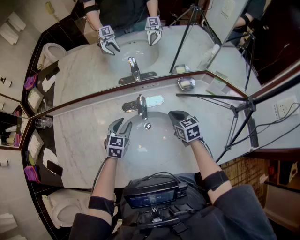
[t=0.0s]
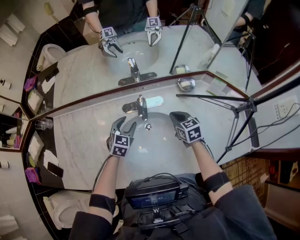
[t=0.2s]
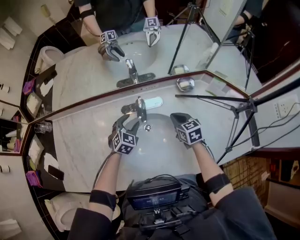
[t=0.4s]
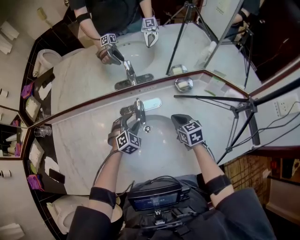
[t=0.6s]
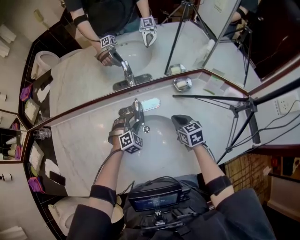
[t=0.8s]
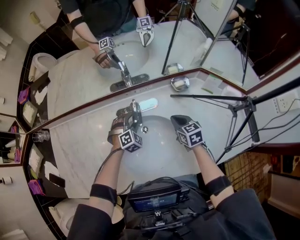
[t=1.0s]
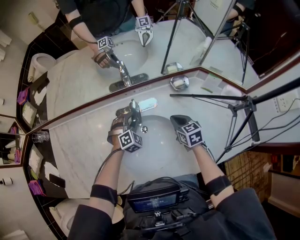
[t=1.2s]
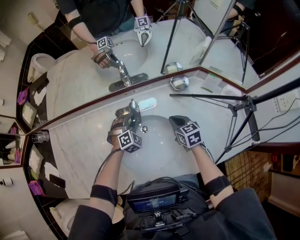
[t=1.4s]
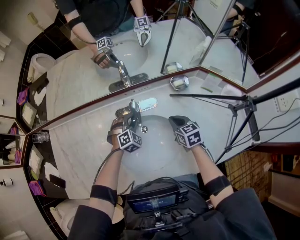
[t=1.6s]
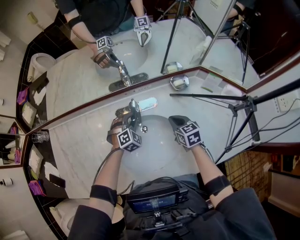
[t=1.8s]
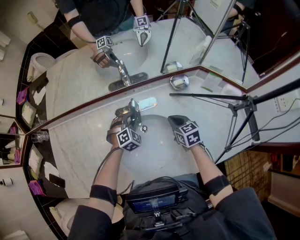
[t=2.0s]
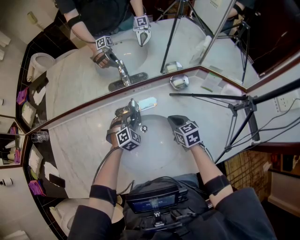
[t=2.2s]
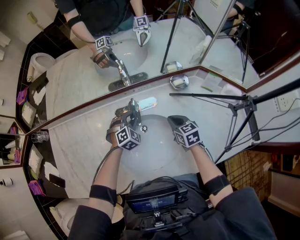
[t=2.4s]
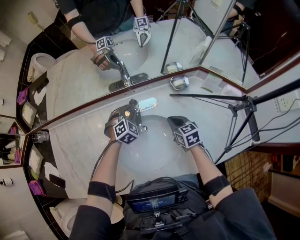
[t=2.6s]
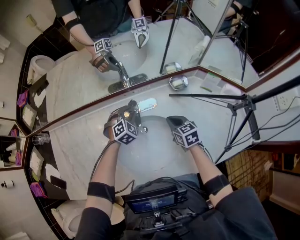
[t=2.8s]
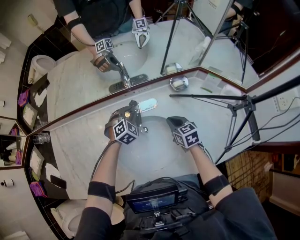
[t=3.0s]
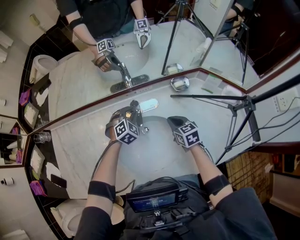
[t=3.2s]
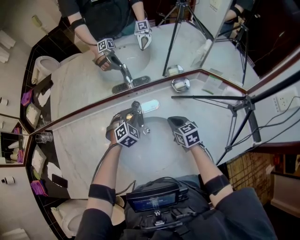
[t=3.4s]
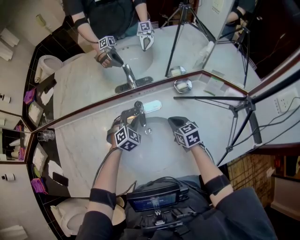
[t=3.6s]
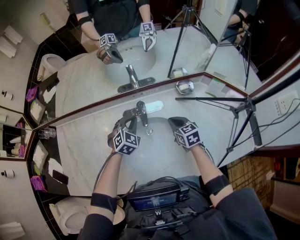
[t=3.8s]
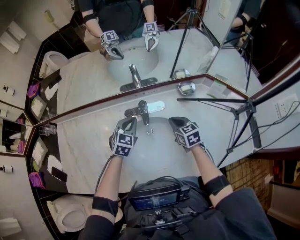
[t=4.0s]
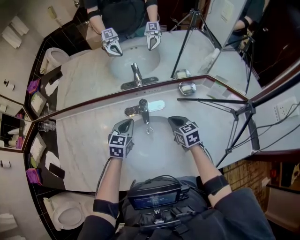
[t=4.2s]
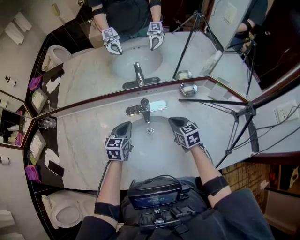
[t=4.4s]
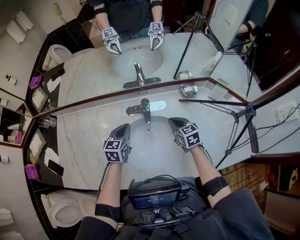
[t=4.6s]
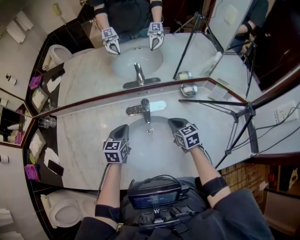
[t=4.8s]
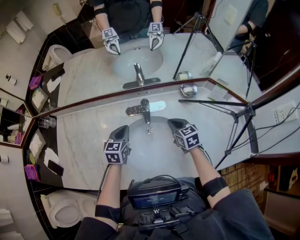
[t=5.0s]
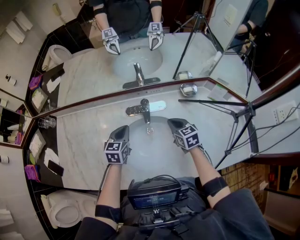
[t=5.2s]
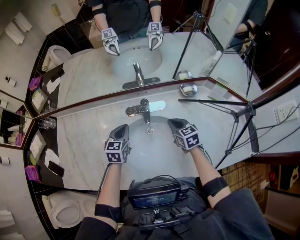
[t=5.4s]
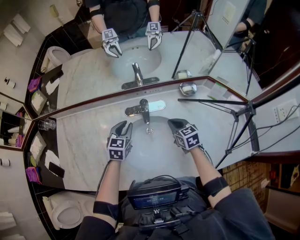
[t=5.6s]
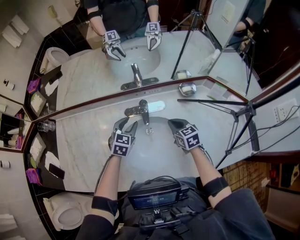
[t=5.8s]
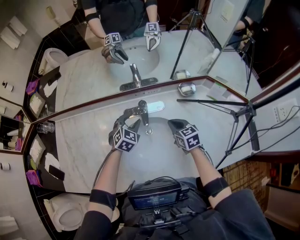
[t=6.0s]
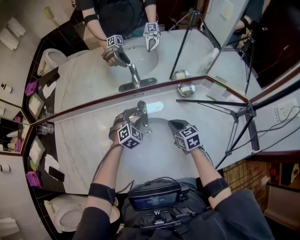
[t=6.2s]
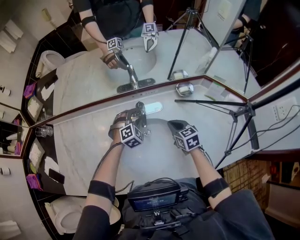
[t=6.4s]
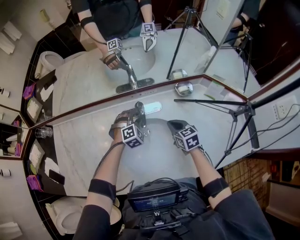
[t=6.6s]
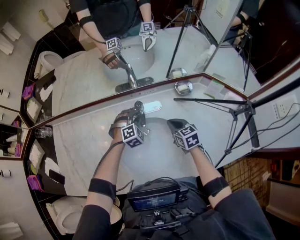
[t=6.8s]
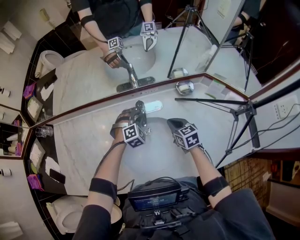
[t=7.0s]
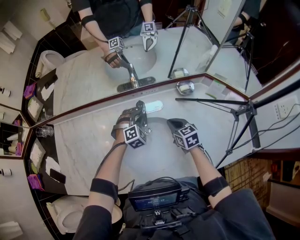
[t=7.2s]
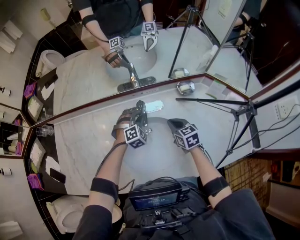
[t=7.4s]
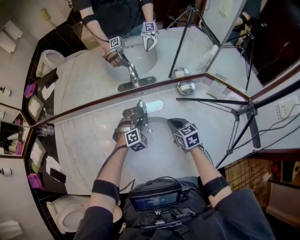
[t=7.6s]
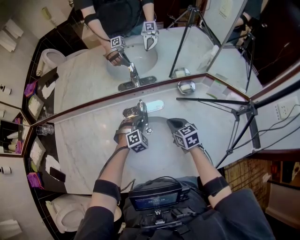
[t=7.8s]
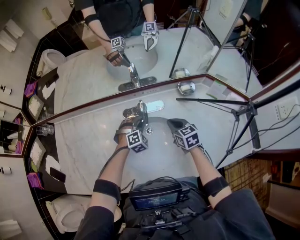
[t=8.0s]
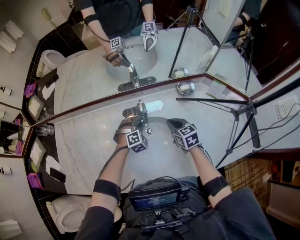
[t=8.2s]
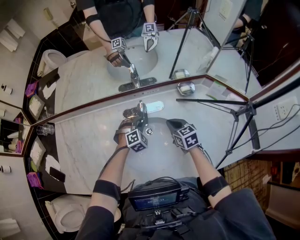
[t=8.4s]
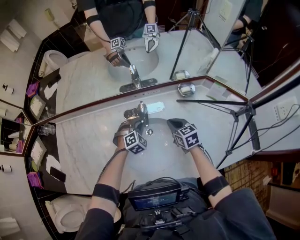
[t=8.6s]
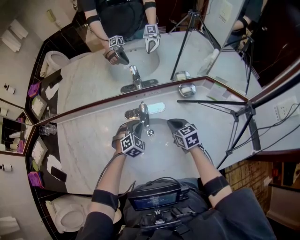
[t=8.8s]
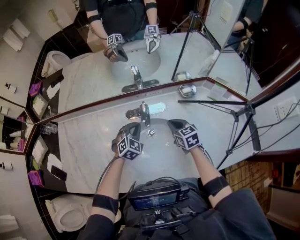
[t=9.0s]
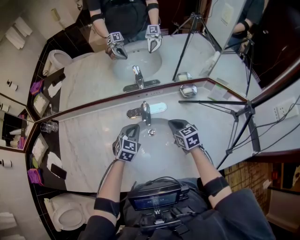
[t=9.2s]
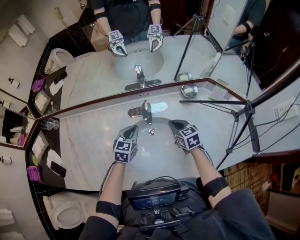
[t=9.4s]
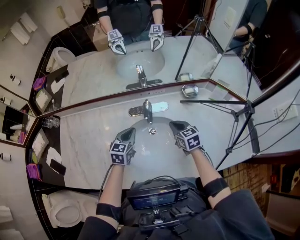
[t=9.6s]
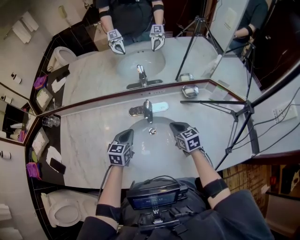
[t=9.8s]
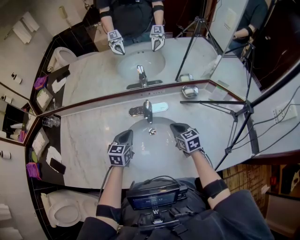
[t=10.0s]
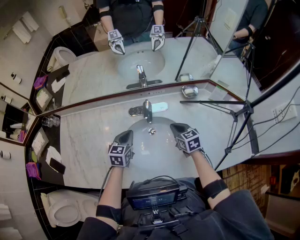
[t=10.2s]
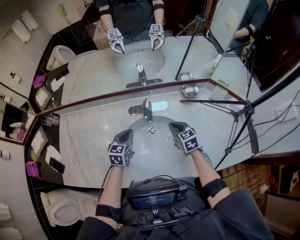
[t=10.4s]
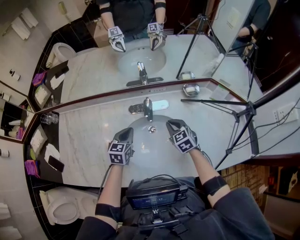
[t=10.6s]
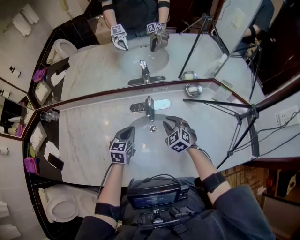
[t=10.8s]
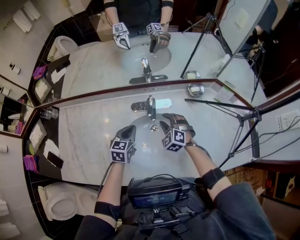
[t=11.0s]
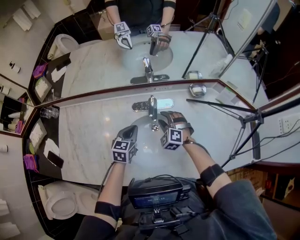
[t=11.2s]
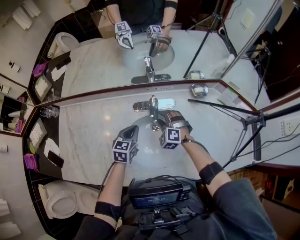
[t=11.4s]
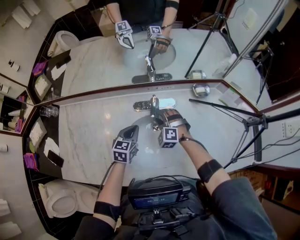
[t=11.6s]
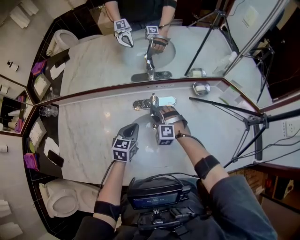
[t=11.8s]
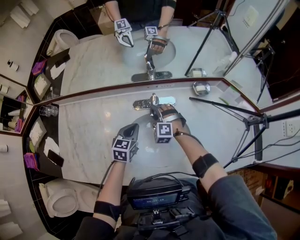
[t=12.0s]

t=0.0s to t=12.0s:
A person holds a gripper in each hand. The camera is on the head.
t=0.0s to t=1.6s: The left gripper travels to the right, downward and forward by about 10 cm, and rotates around the line of its fingers by approximately 40 degrees, clockwise from behind.
t=1.6s to t=3.0s: There are only small adjustments of the grippers.
t=3.0s to t=4.4s: The left gripper travels to the left, backward and upward by some 15 cm, twists approximately 50 degrees counterclockwise, seen from behind, and closes, while the right gripper ends up roughly 5 cm from where it was.
t=4.4s to t=6.0s: The left gripper heads to the right, covering about 5 cm, turns by some 40 degrees, and opens up.
t=6.0s to t=7.6s: The left gripper goes approximately 5 cm downward, changes its angle by some 30 degrees, and closes its fingers.
t=7.6s to t=9.0s: The left gripper shifts some 5 cm upward, and turns by about 20 degrees.
t=9.0s to t=10.4s: The left gripper shifts roughly 5 cm to the left, and rolls counterclockwise, seen from behind, by approximately 40 degrees.
t=10.4s to t=12.0s: The right gripper moves to the left and forward, some 15 cm, rotates around the line of its fingers by approximately 70 degrees, counterclockwise from behind, and opens its fingers.

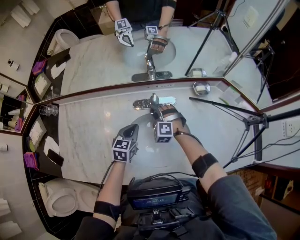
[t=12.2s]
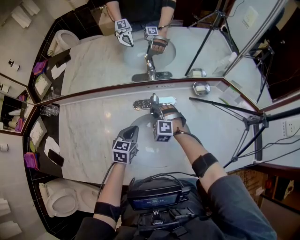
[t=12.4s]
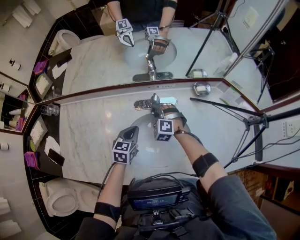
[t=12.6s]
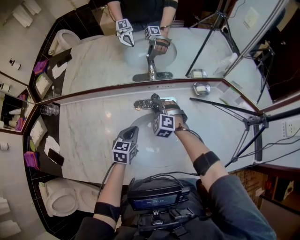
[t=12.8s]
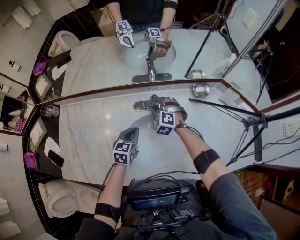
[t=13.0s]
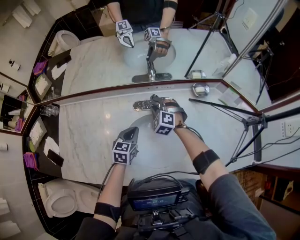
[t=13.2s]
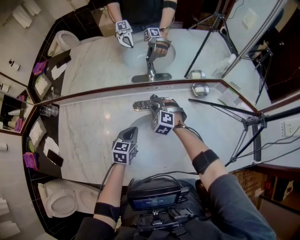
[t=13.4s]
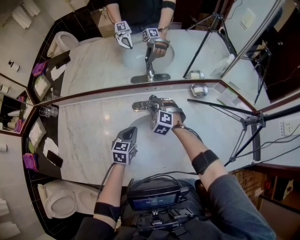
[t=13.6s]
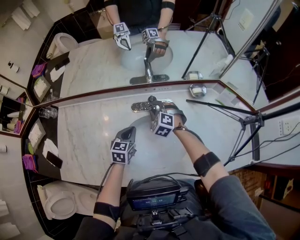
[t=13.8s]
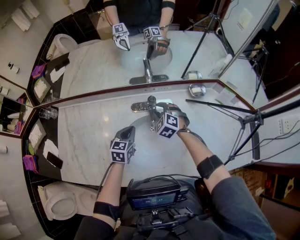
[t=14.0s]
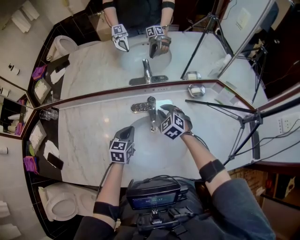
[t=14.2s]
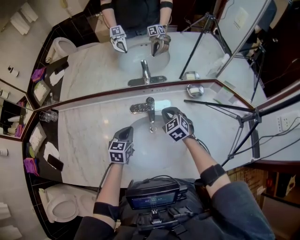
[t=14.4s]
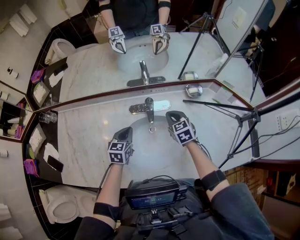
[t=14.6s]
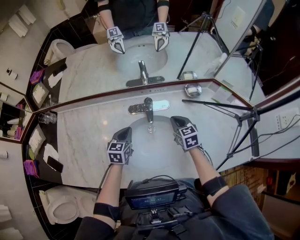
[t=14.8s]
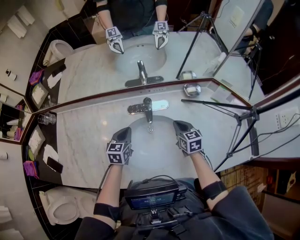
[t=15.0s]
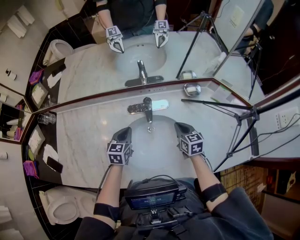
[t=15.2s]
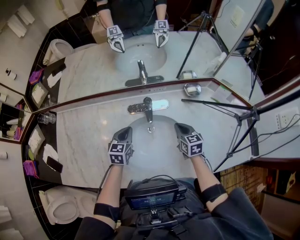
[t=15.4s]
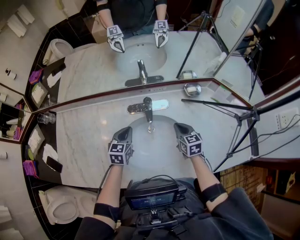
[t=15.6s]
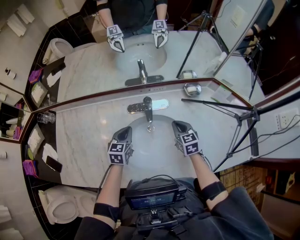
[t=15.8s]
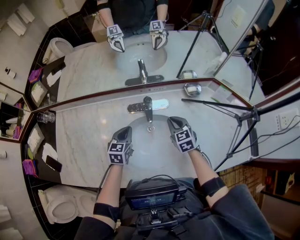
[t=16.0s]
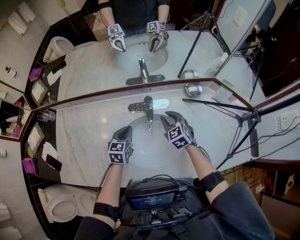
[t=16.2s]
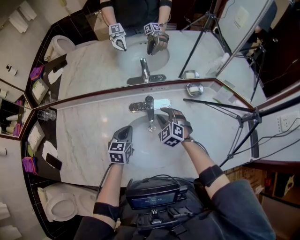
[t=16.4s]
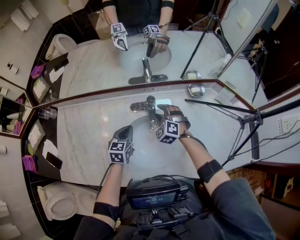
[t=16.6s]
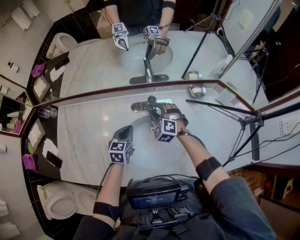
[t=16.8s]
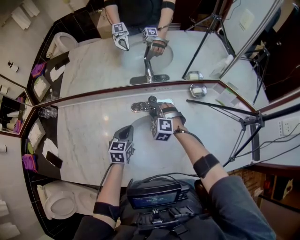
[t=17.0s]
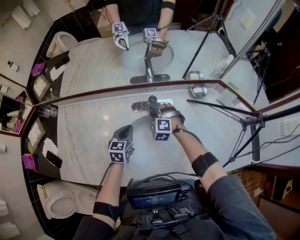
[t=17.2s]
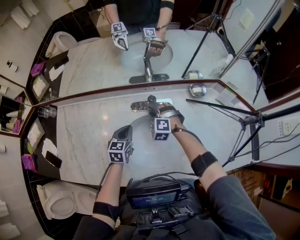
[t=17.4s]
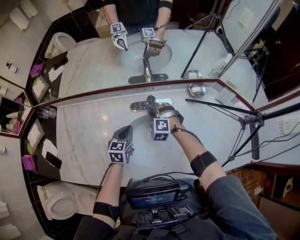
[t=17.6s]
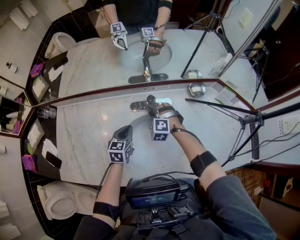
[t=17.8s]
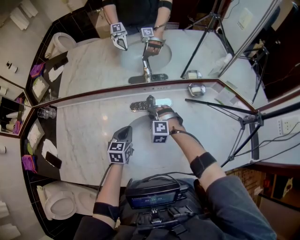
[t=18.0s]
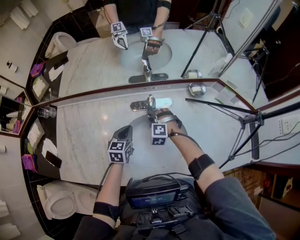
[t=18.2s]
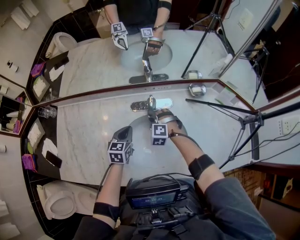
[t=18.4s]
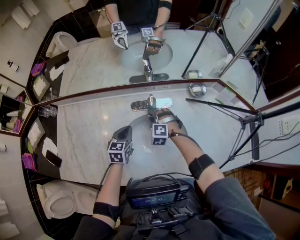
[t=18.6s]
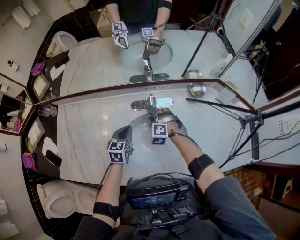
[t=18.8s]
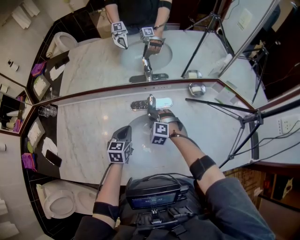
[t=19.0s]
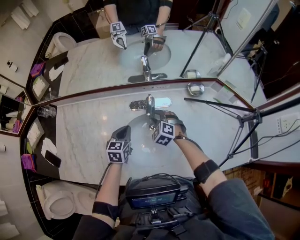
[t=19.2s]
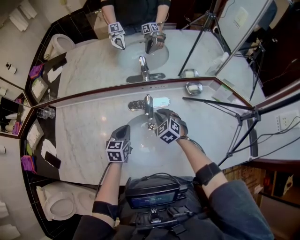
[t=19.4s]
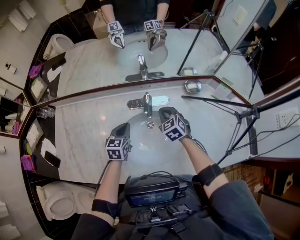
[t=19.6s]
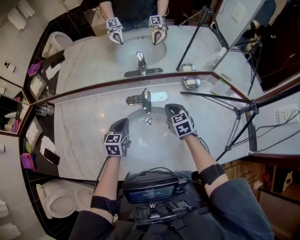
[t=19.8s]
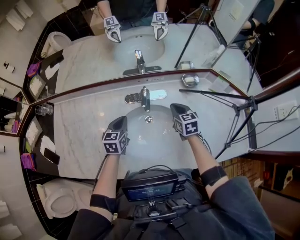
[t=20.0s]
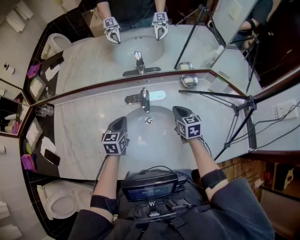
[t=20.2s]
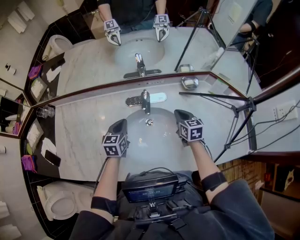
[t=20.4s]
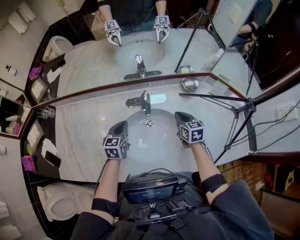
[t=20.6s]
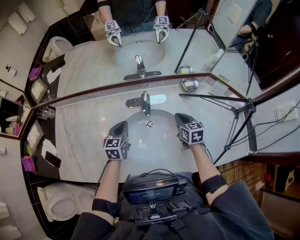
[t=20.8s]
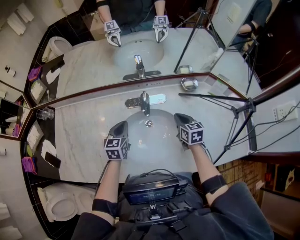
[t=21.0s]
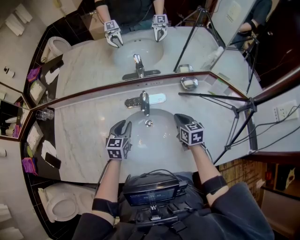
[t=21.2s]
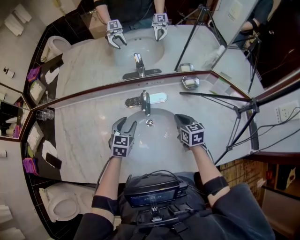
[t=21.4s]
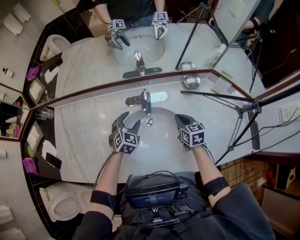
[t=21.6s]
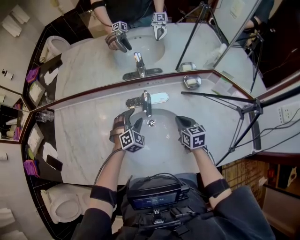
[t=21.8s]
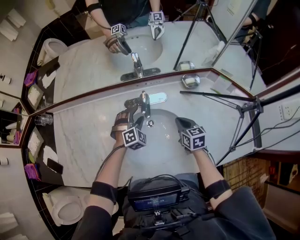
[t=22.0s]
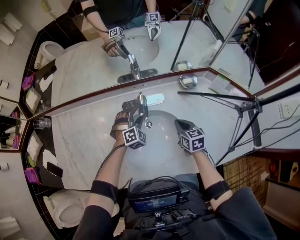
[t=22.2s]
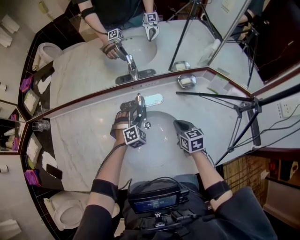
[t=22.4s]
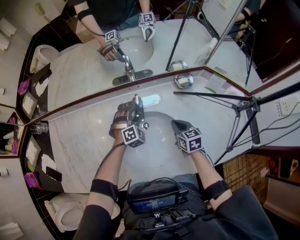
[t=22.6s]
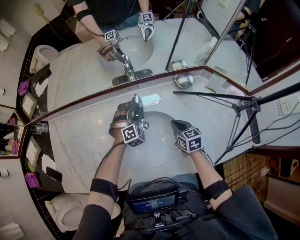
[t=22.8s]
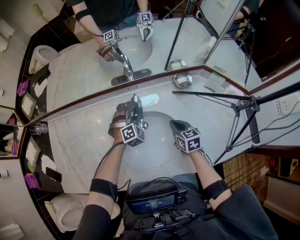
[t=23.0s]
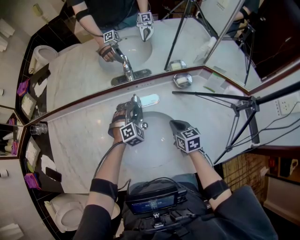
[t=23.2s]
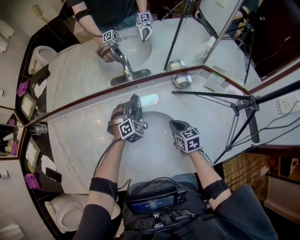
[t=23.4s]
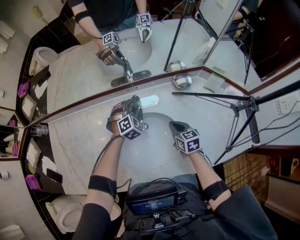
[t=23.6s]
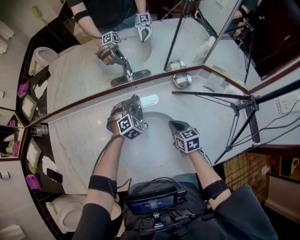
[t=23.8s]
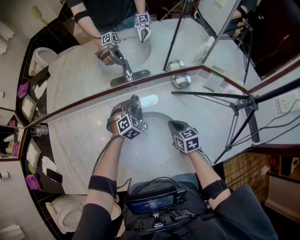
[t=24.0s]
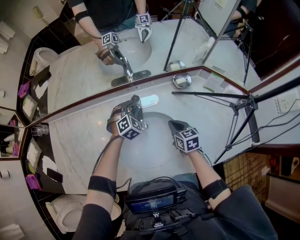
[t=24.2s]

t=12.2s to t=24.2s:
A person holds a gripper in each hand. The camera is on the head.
t=12.2s to t=13.8s: The grippers make only small movements.
t=13.8s to t=15.2s: The right gripper heads to the right and backward, covering some 20 cm, twists roughly 60 degrees clockwise, seen from behind, and closes.
t=15.2s to t=16.6s: The right gripper goes some 15 cm to the left and forward, twists approximately 70 degrees counterclockwise, seen from behind, and opens up.
t=16.6s to t=18.2s: The right gripper is displaced downward by some 5 cm.
t=18.2s to t=19.8s: The right gripper is displaced to the right and upward by roughly 15 cm, rotates around the line of its fingers by about 60 degrees, clockwise from behind, and closes up.
t=19.8s to t=21.2s: The right gripper is displaced to the right by some 5 cm. The left gripper opens up.
t=21.2s to t=22.6s: The left gripper shifts some 15 cm to the right, forward and downward, rotates around the line of its fingers by some 70 degrees, clockwise from behind, and opens its fingers.
t=22.6s to t=24.2s: The left gripper closes up.
